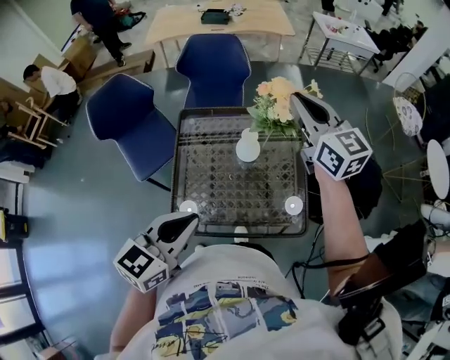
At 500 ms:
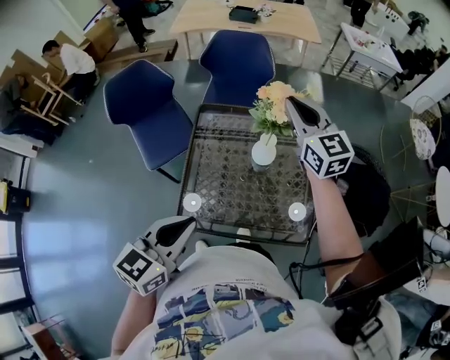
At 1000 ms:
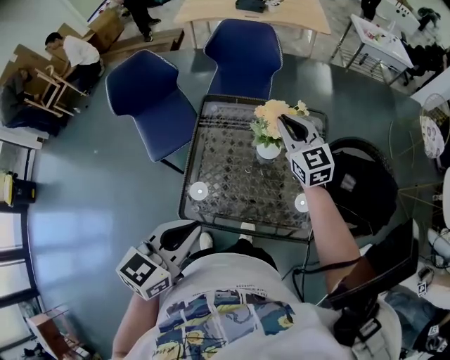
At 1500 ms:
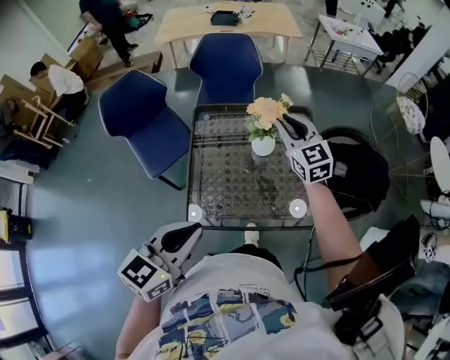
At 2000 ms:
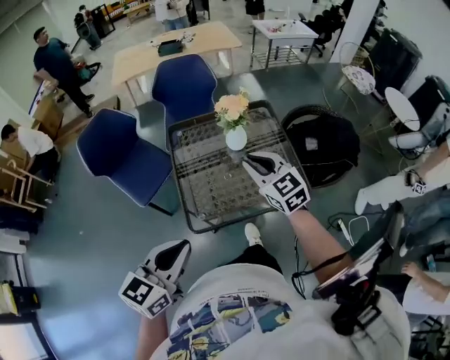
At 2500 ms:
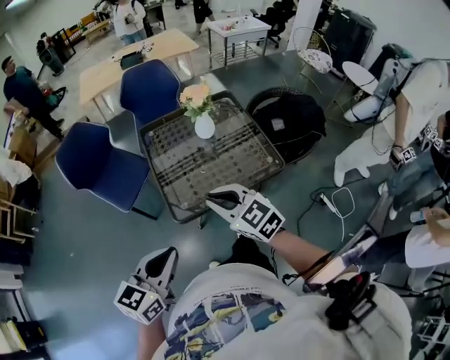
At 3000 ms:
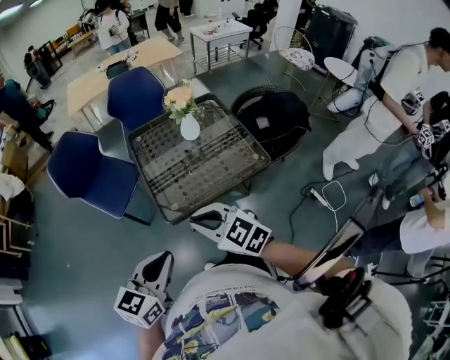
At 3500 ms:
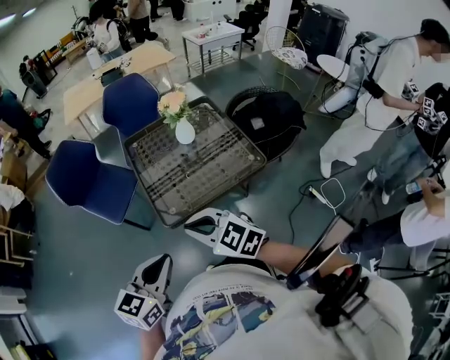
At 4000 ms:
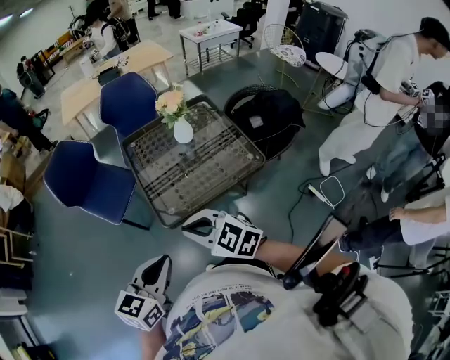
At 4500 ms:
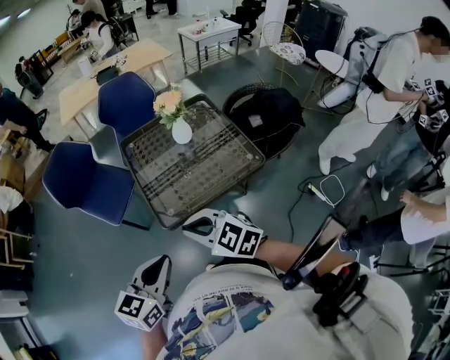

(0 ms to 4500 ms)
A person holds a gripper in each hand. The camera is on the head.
0 ms - 2000 ms: The right gripper heads backward, to the left and downward, covering some 30 cm. The left gripper moves backward and to the left, some 20 cm.
2000 ms - 4500 ms: The right gripper travels backward and to the left by roughly 30 cm. Meanwhile the left gripper goes some 10 cm backward.

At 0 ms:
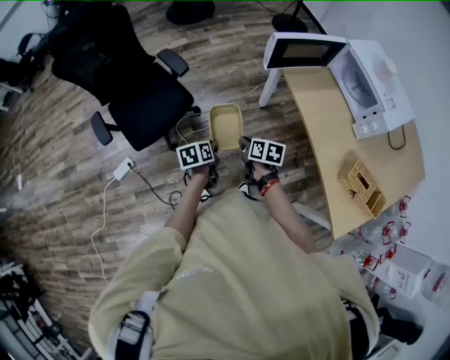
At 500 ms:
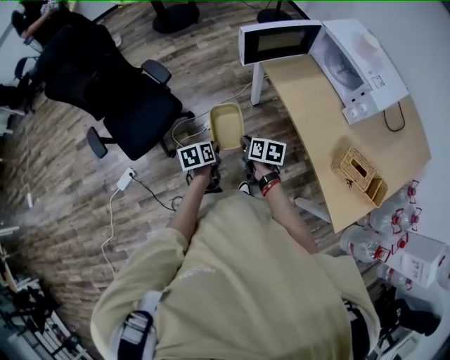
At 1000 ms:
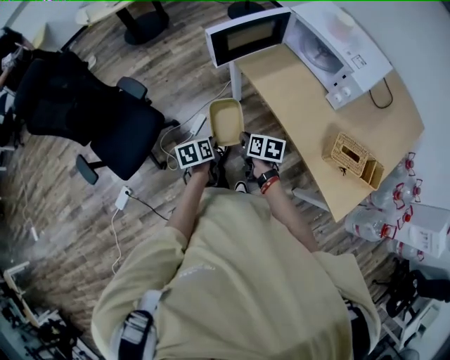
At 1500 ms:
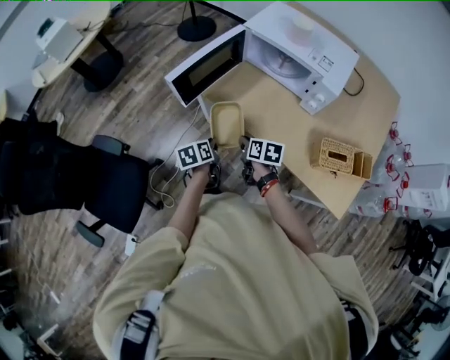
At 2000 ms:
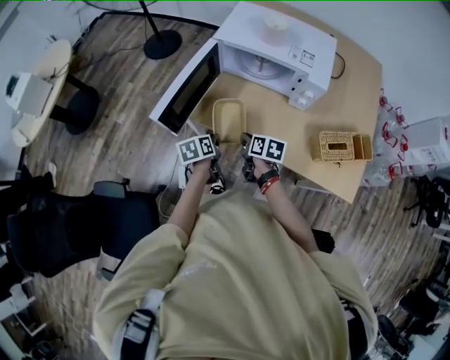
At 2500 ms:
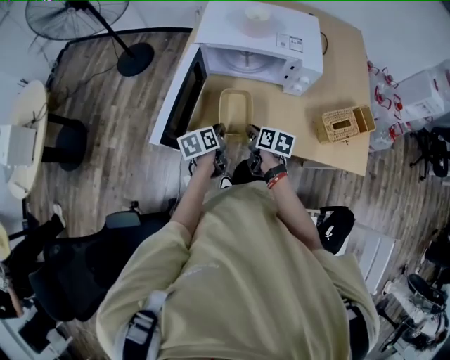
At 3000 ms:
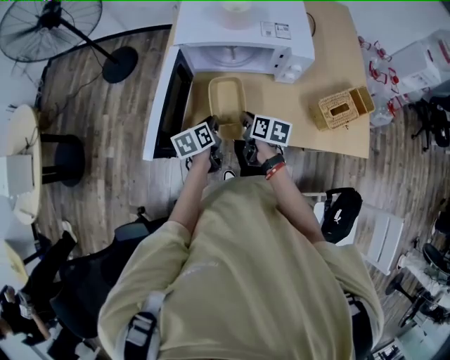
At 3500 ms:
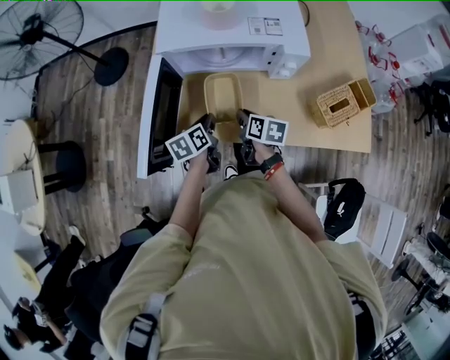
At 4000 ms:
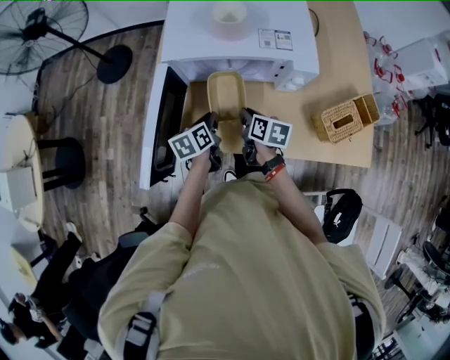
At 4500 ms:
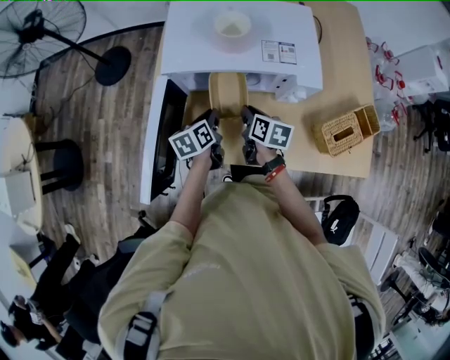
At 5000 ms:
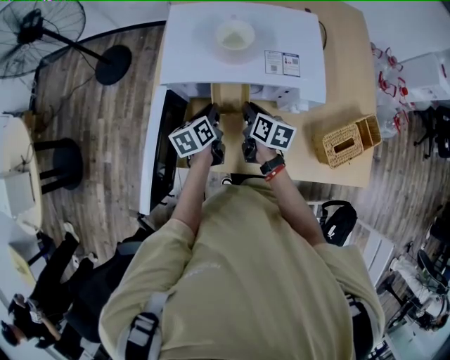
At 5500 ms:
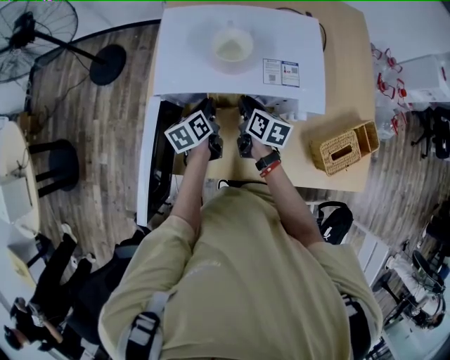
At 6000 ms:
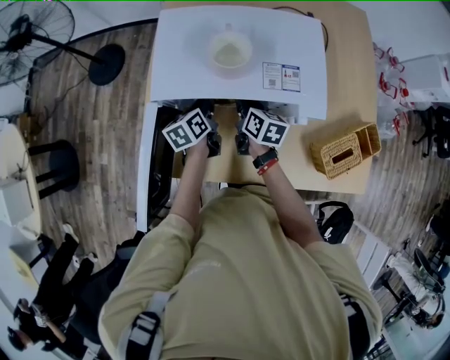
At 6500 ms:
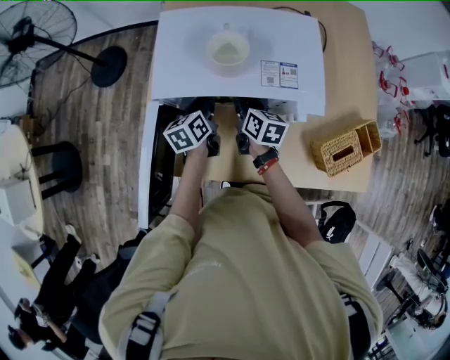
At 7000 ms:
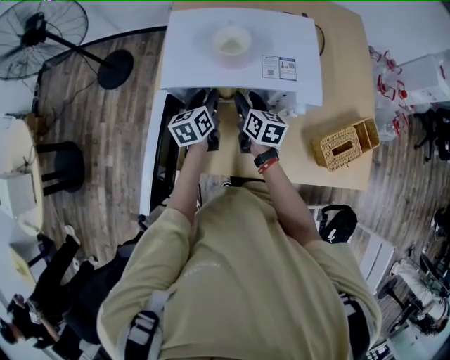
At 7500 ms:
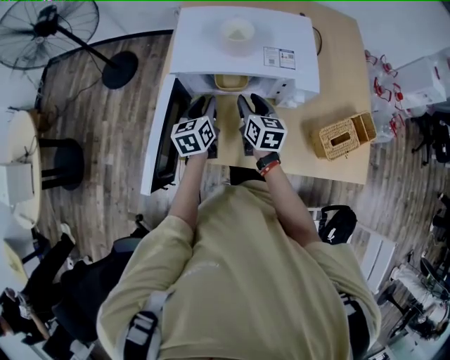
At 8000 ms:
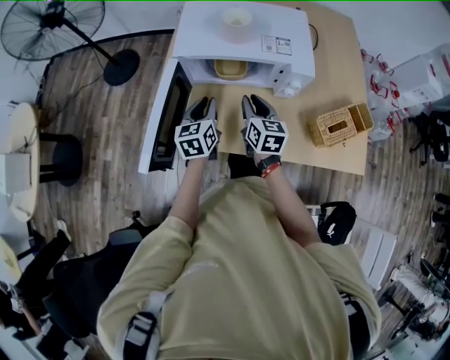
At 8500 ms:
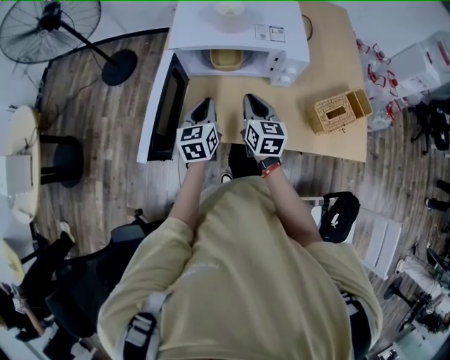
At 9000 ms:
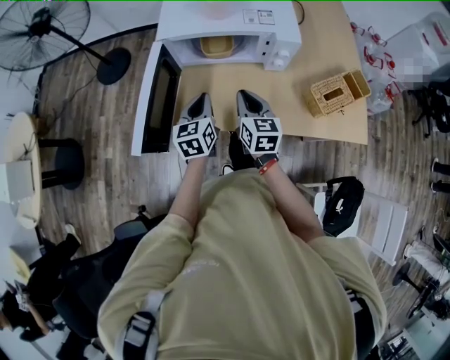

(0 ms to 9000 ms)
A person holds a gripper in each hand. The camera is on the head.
0 ms - 2000 ms: The right gripper changes place by about 35 cm, and swivels some 50 degrees. The left gripper moves about 40 cm, and swivels about 40 degrees.
2000 ms - 4500 ms: Both grippers travel together forward, about 20 cm. The right gripper changes its angle by approximately 20 degrees.
4500 ms - 7000 ms: The grippers both shift forward by about 10 cm. The left gripper opens its fingers. Meanwhile the right gripper opens up.
7000 ms - 9000 ms: The grippers both shift backward by roughly 20 cm. The right gripper closes. The left gripper closes its fingers.

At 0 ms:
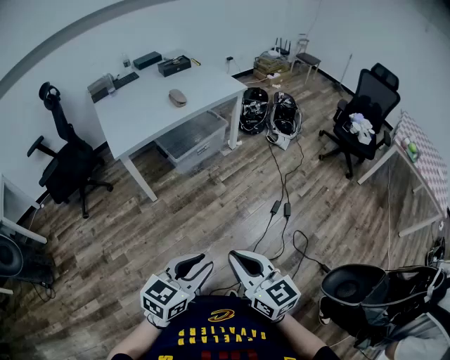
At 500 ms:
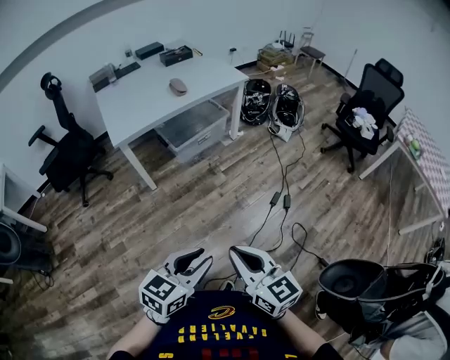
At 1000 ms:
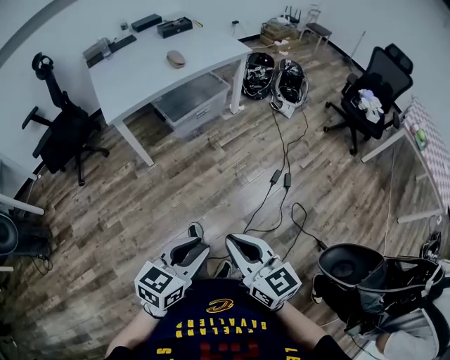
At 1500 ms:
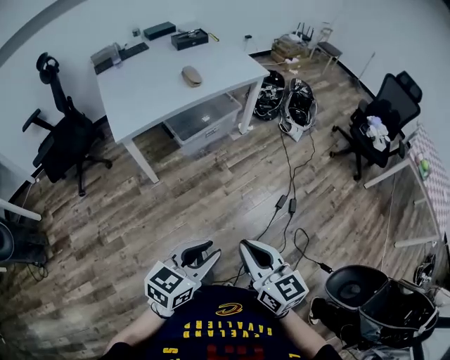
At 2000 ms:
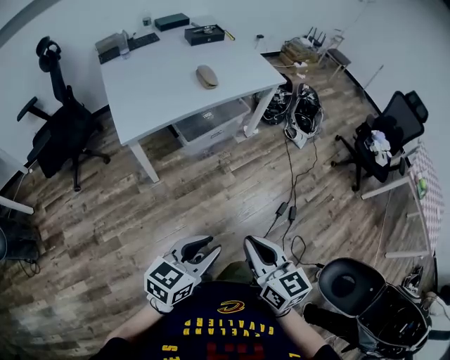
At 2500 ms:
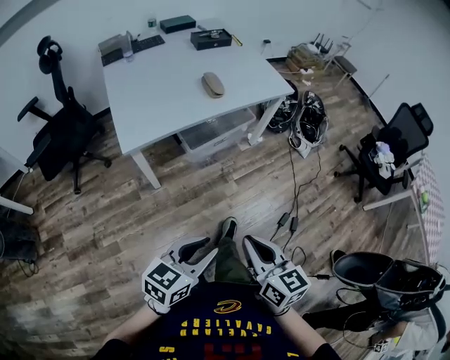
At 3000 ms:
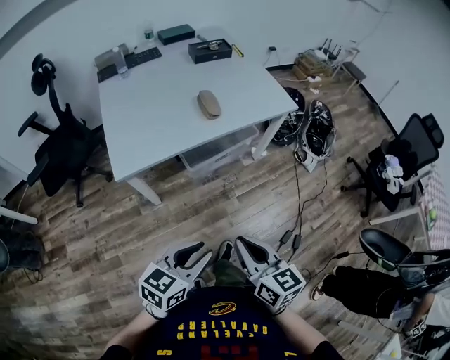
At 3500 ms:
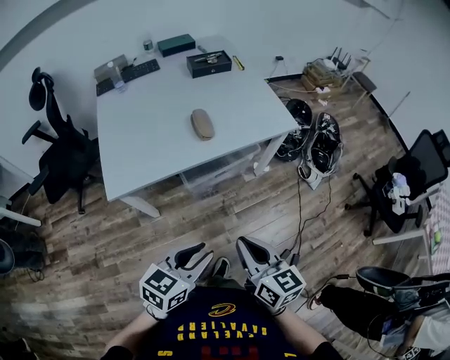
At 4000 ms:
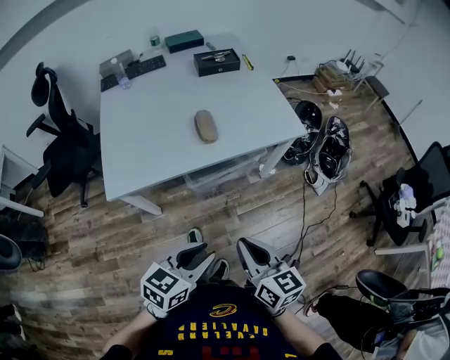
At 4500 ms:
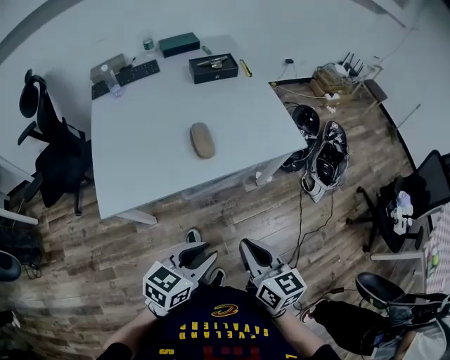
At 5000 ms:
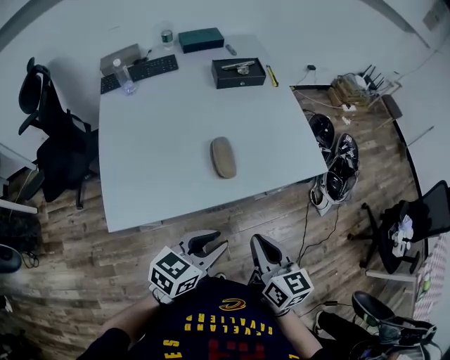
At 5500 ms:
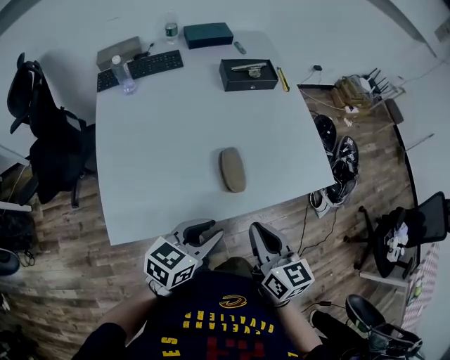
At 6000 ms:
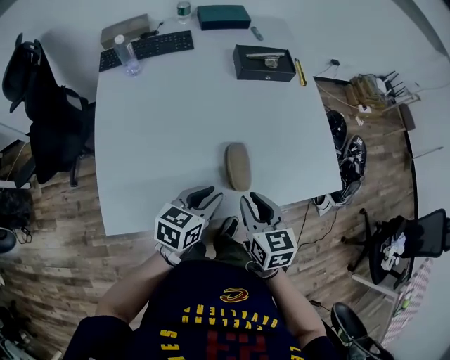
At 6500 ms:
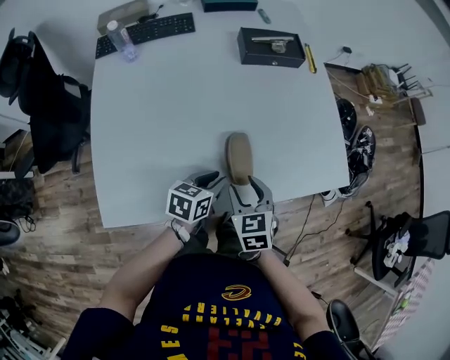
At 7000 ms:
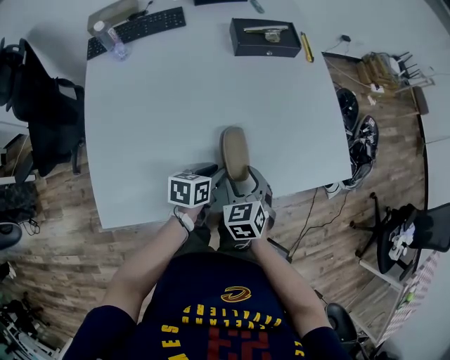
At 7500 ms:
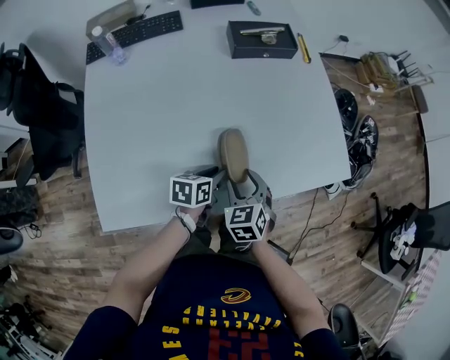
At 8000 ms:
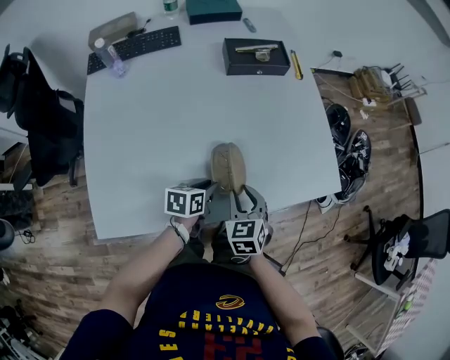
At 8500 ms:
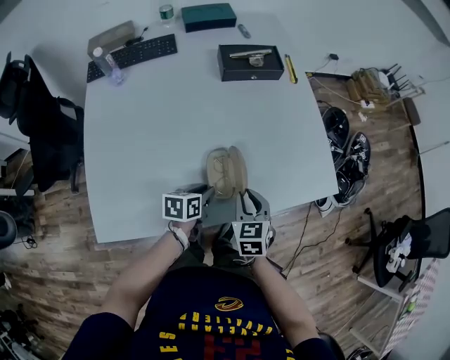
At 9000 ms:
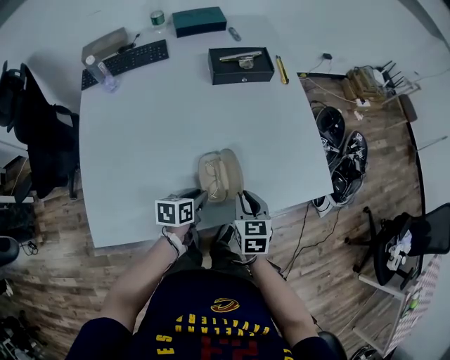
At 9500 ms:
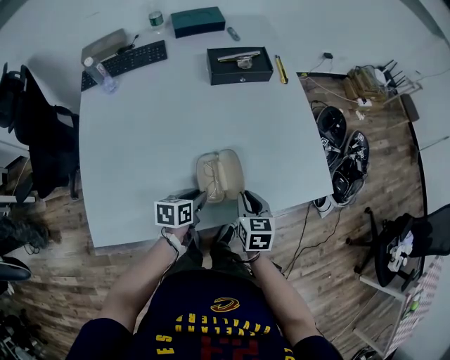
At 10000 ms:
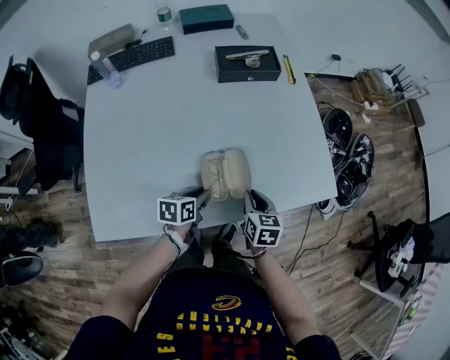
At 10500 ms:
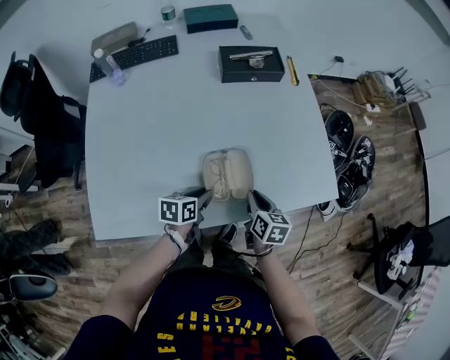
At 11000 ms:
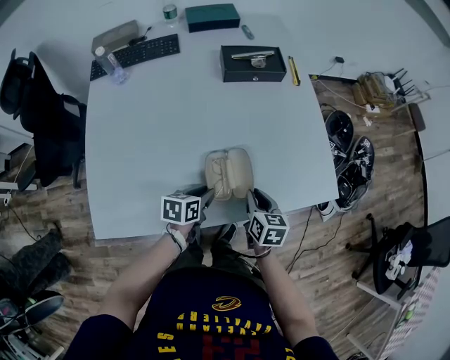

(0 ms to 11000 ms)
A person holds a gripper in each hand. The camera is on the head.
0 ms - 2000 ms: Both grippers travel together forward and to the left, about 20 cm.
2000 ms - 3500 ms: The two grippers go roughly 30 cm forward.
3500 ms - 5500 ms: The grippers both shift forward by about 30 cm.
5500 ms - 7500 ms: Both grippers move downward and forward, roughly 25 cm. The left gripper rotates about 30 degrees; the right gripper turns by about 40 degrees, and opens up.
7500 ms - 9000 ms: The right gripper moves to the right, roughly 5 cm, swivels about 20 degrees, and closes up.

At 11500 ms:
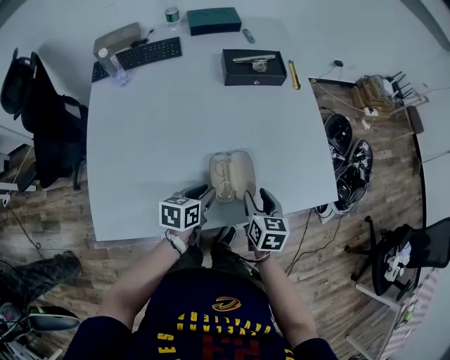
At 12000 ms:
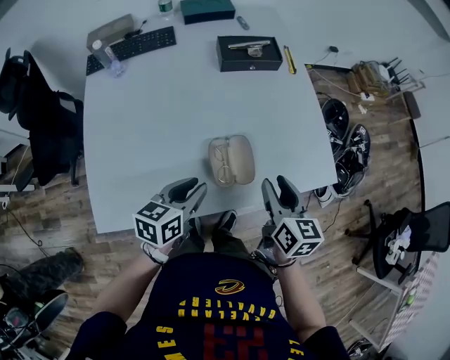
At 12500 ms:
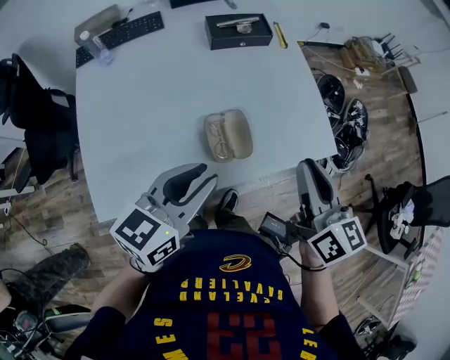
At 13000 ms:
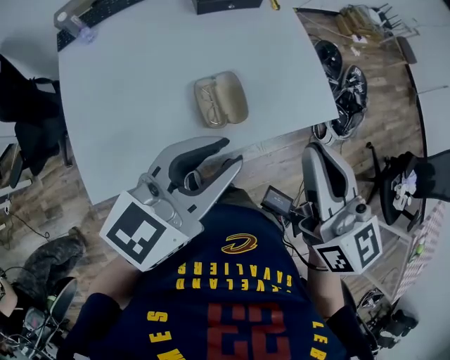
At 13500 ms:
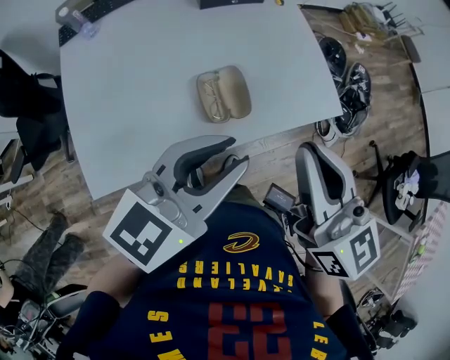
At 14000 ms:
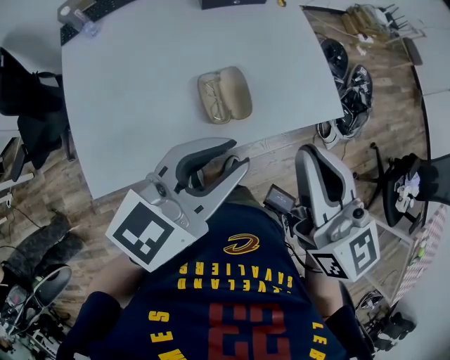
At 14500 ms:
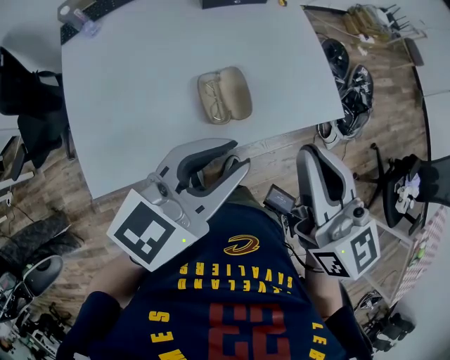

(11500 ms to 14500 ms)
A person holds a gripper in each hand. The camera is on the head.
11500 ms - 13000 ms: The grippers both shift upward by roughly 30 cm. The left gripper turns by roughly 40 degrees. Meanwhile the right gripper tilts its fingers some 30 degrees upward, and closes its fingers.
13000 ms - 14500 ms: The grippers move only a little.
